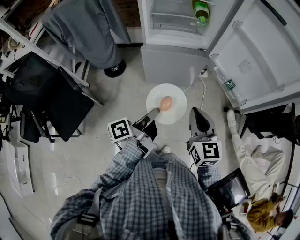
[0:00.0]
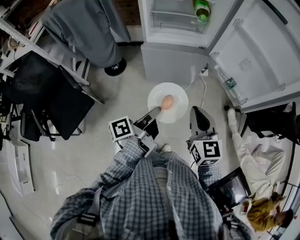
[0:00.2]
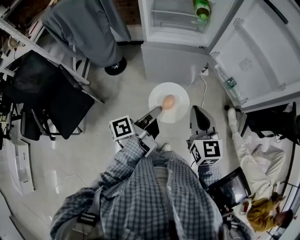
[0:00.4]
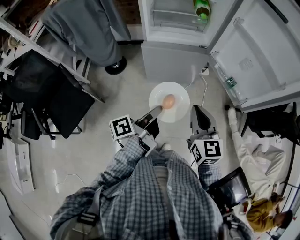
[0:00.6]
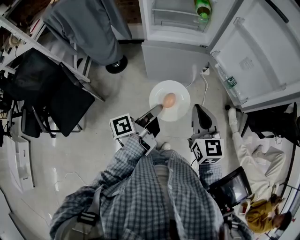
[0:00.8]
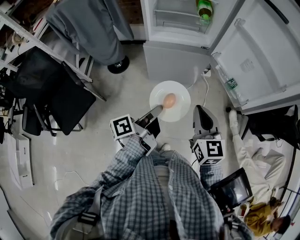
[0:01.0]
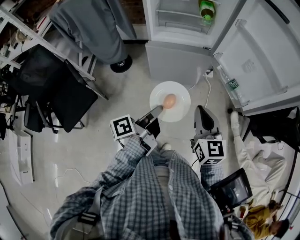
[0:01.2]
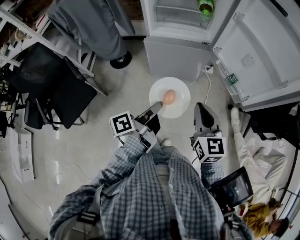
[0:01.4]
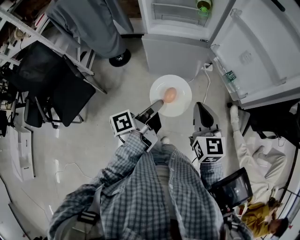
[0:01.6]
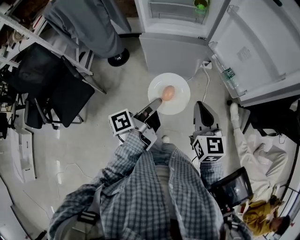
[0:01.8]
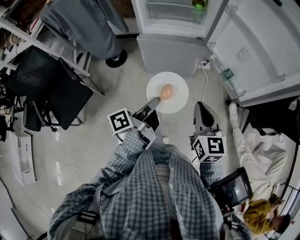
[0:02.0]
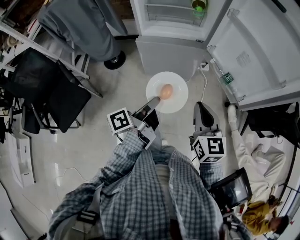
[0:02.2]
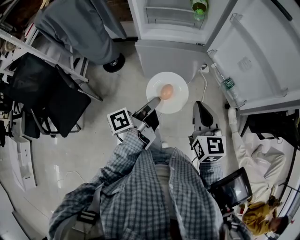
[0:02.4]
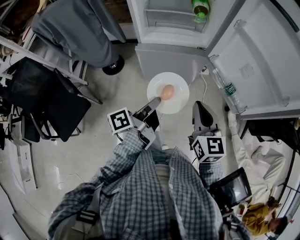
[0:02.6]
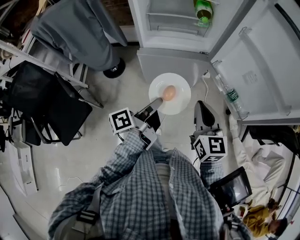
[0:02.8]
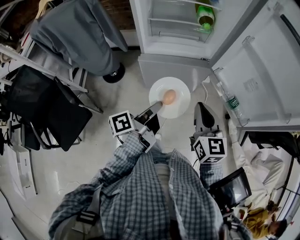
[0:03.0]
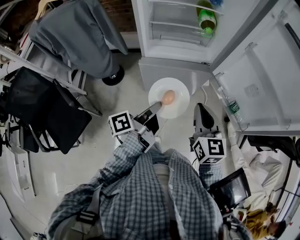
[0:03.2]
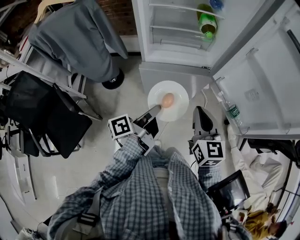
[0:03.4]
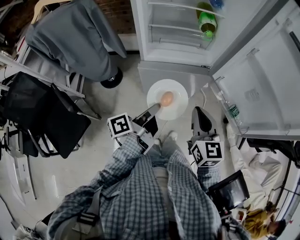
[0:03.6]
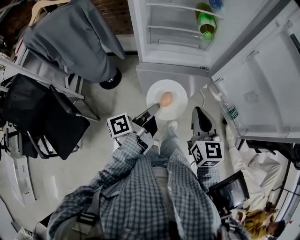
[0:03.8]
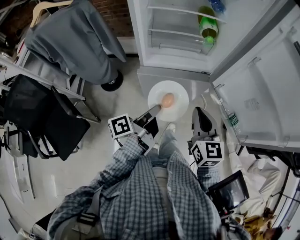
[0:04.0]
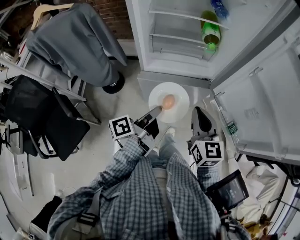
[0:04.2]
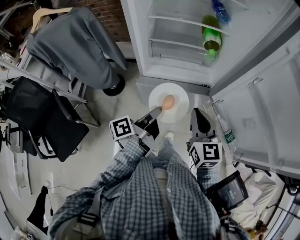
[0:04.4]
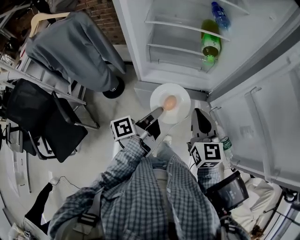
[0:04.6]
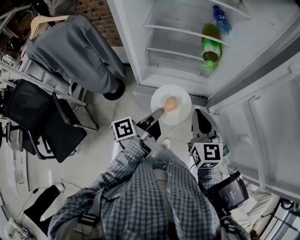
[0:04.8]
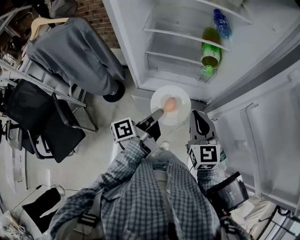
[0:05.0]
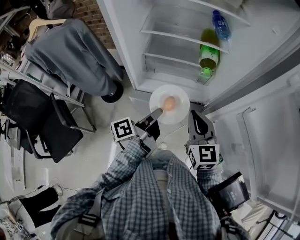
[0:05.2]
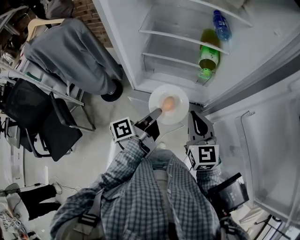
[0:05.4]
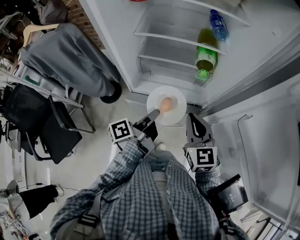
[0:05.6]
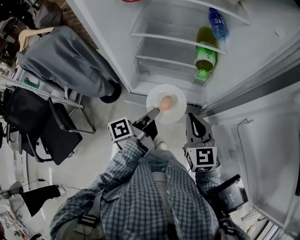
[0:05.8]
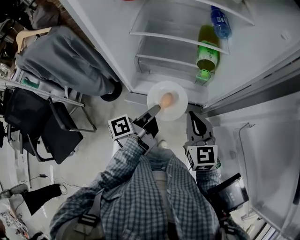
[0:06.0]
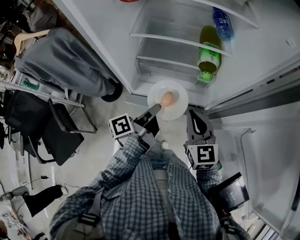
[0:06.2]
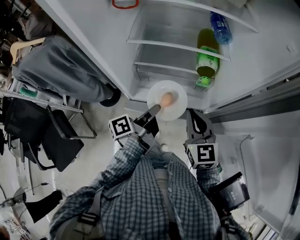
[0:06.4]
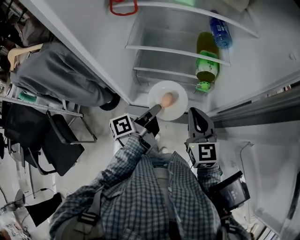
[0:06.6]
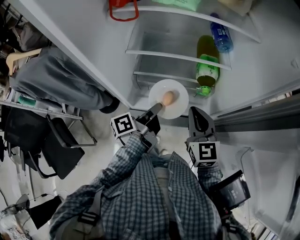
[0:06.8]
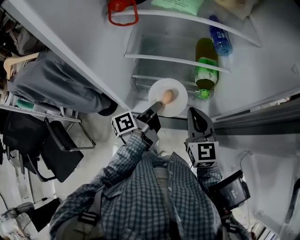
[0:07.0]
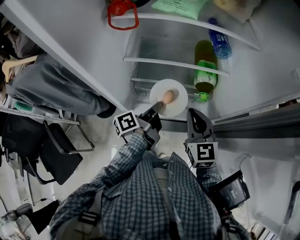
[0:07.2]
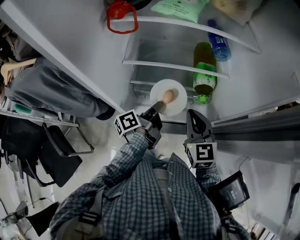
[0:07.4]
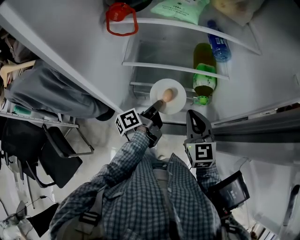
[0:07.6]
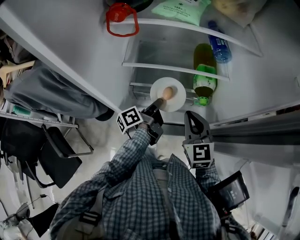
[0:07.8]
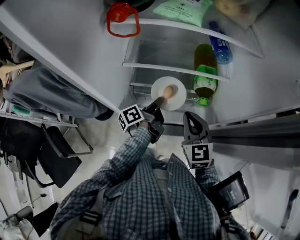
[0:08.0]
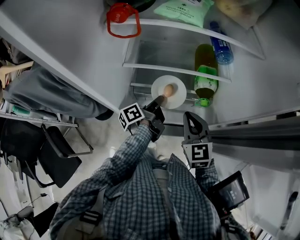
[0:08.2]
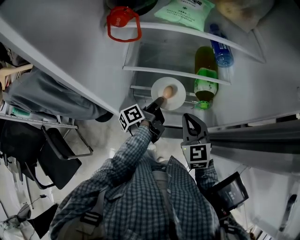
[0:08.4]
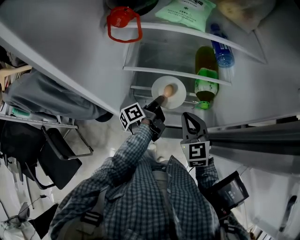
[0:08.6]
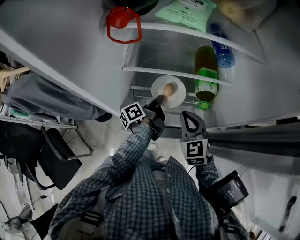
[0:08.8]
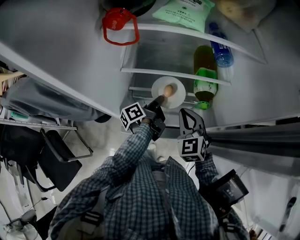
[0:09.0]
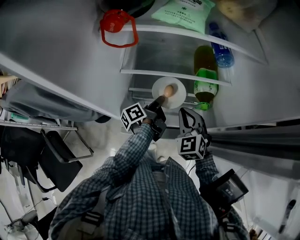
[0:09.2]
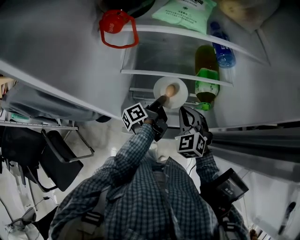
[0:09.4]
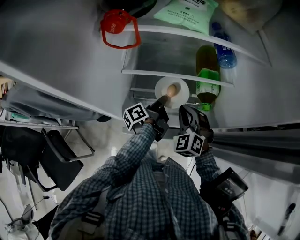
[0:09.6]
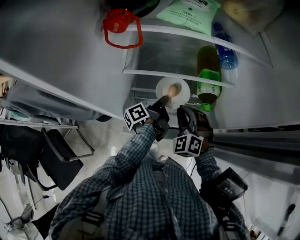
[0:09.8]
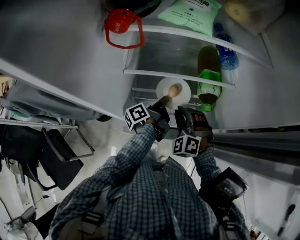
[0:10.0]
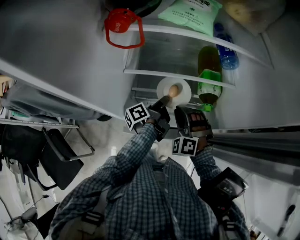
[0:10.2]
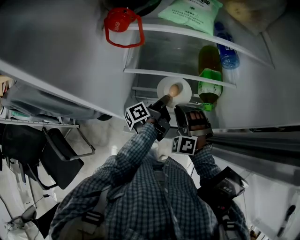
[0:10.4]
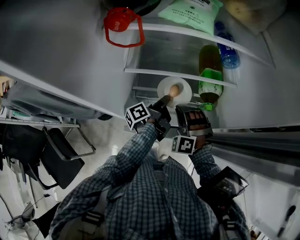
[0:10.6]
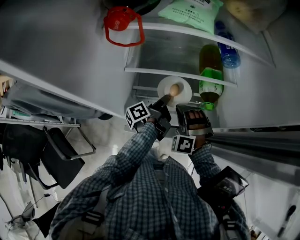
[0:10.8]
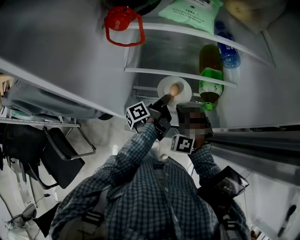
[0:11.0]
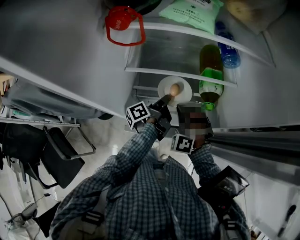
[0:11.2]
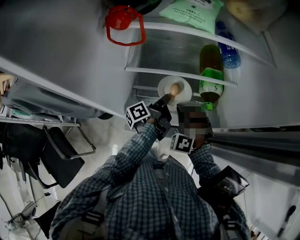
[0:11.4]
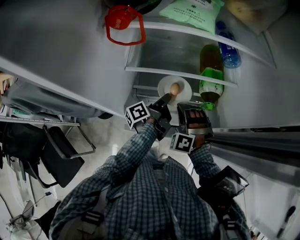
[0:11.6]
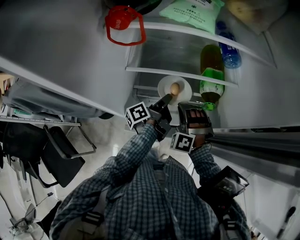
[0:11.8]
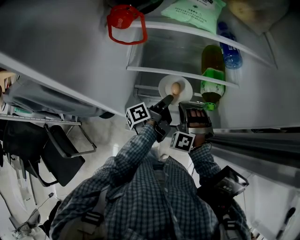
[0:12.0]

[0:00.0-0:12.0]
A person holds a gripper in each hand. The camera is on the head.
0:00.0 to 0:01.6: The right gripper ends up about 5 cm from where it was.
0:01.6 to 0:03.0: The right gripper ends up approximately 15 cm from where it was.
0:03.0 to 0:04.4: The right gripper shifts by about 15 cm.
0:04.4 to 0:06.0: The right gripper moves roughly 15 cm.
0:06.0 to 0:07.6: The right gripper changes place by roughly 15 cm.
0:07.6 to 0:09.0: The right gripper heads downward, covering some 5 cm, and changes its angle by approximately 20 degrees.
0:09.0 to 0:10.4: The right gripper heads downward, covering about 5 cm, and rolls counterclockwise, seen from behind, by some 50 degrees.

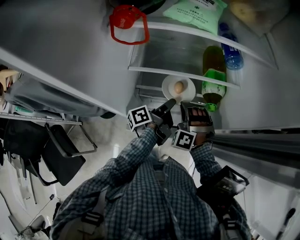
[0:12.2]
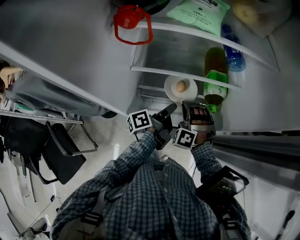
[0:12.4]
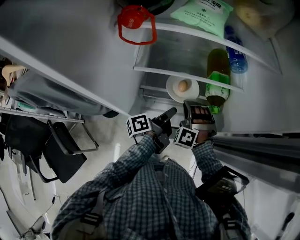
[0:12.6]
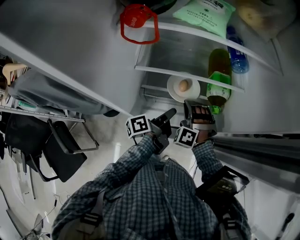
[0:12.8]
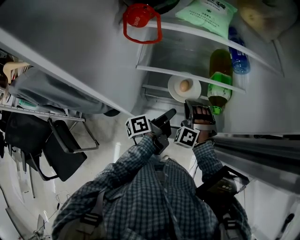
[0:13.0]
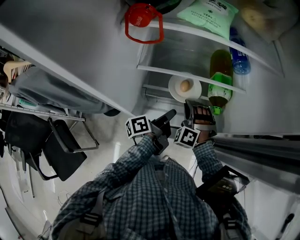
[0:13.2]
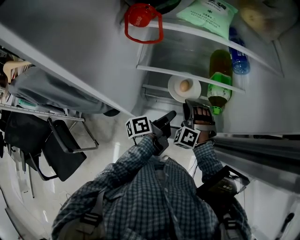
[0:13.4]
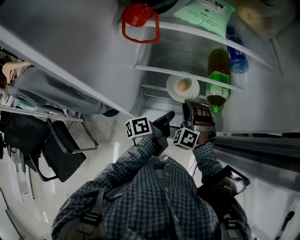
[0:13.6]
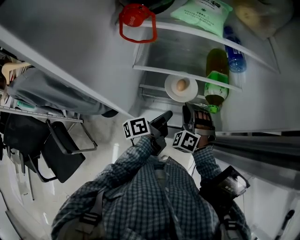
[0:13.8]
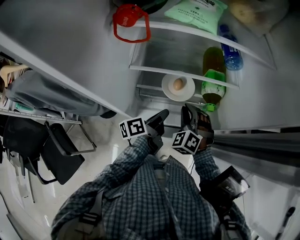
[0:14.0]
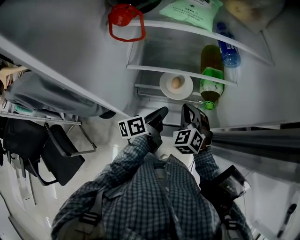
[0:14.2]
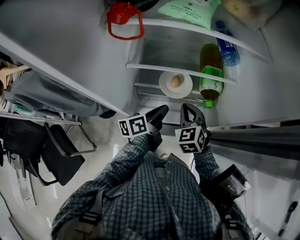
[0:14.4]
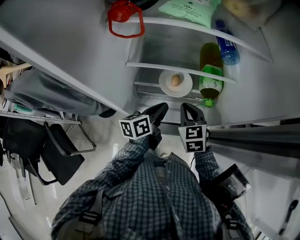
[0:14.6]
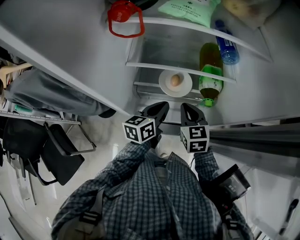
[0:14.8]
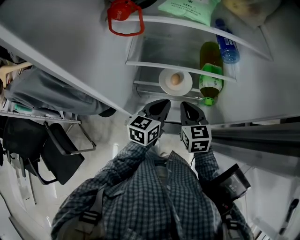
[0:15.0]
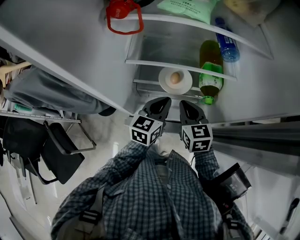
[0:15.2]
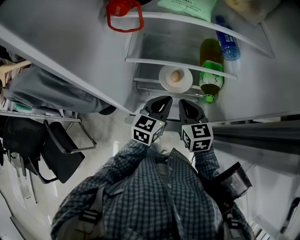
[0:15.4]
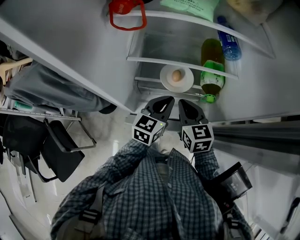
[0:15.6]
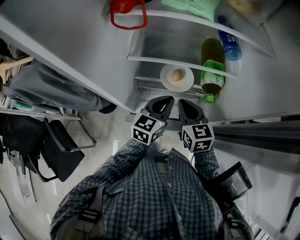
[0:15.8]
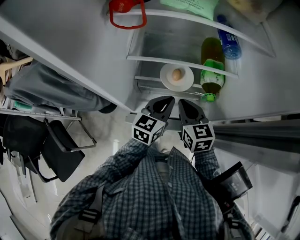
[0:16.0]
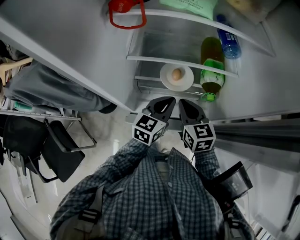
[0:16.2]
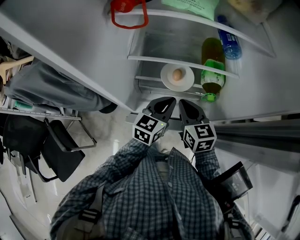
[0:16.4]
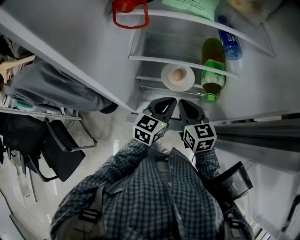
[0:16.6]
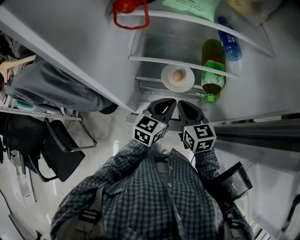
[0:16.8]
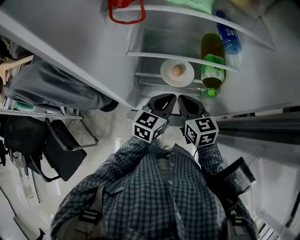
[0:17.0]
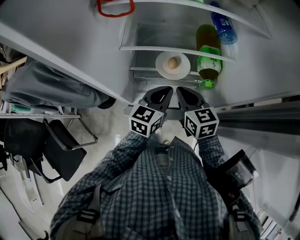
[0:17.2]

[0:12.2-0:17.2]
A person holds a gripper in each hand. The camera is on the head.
0:13.8 to 0:15.6: The right gripper is displaced upward by some 5 cm, and rotates around the line of its fingers by some 70 degrees, clockwise from behind.

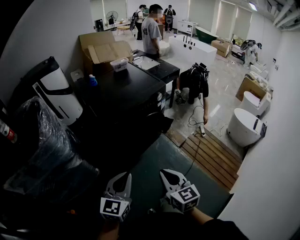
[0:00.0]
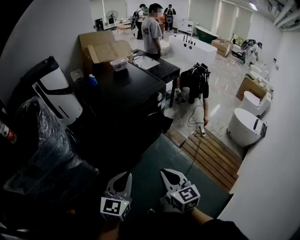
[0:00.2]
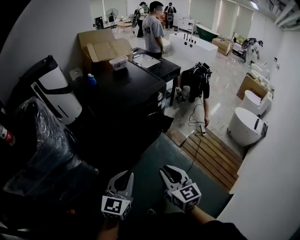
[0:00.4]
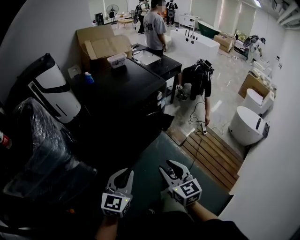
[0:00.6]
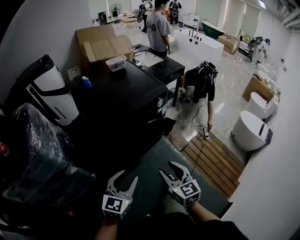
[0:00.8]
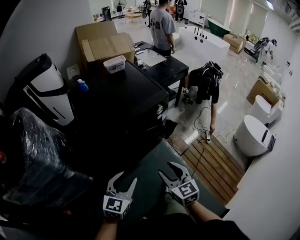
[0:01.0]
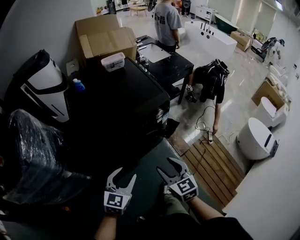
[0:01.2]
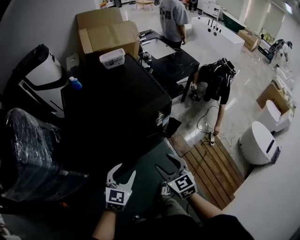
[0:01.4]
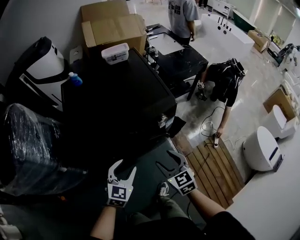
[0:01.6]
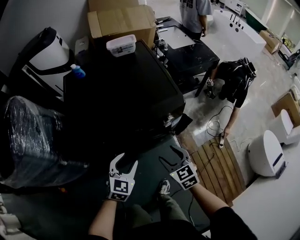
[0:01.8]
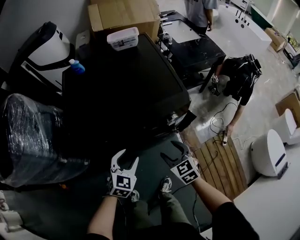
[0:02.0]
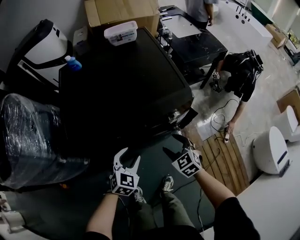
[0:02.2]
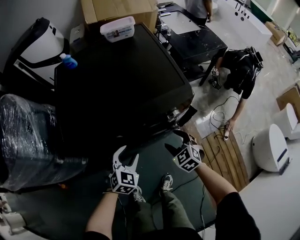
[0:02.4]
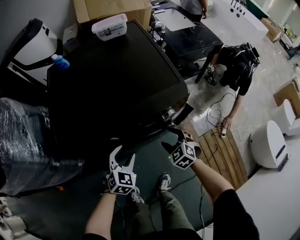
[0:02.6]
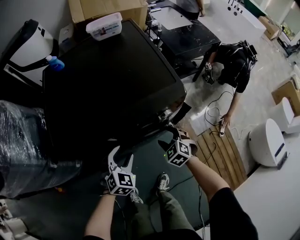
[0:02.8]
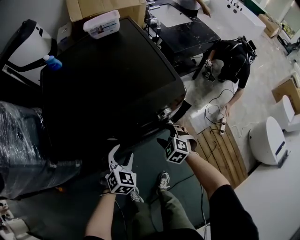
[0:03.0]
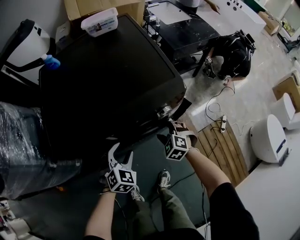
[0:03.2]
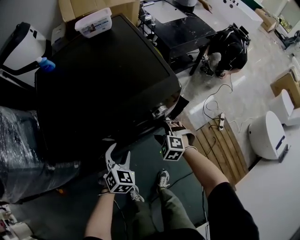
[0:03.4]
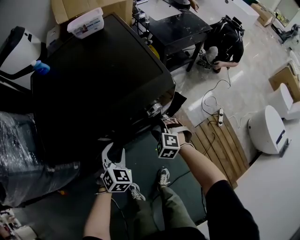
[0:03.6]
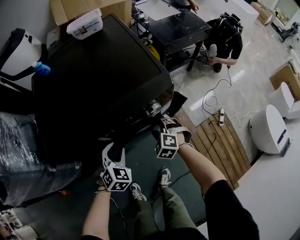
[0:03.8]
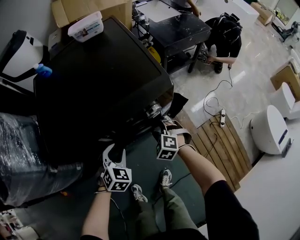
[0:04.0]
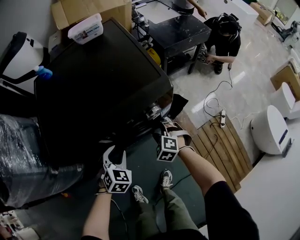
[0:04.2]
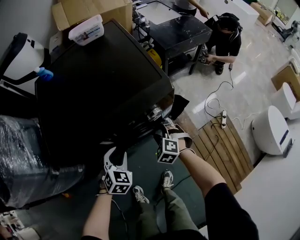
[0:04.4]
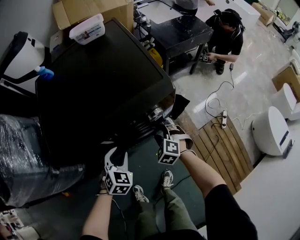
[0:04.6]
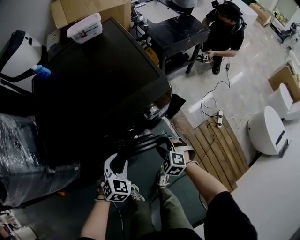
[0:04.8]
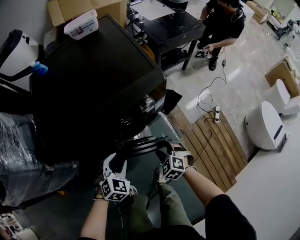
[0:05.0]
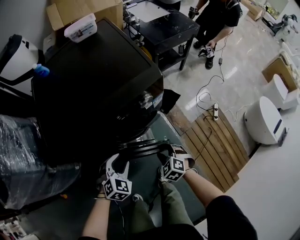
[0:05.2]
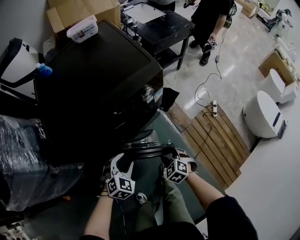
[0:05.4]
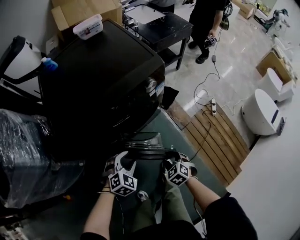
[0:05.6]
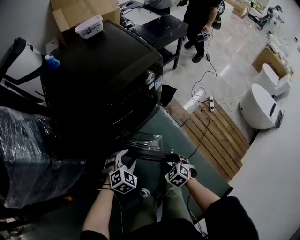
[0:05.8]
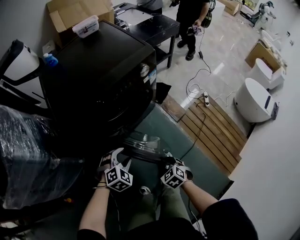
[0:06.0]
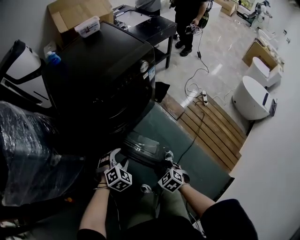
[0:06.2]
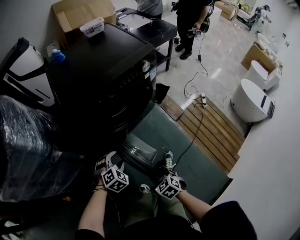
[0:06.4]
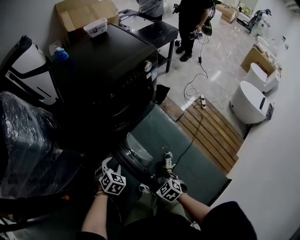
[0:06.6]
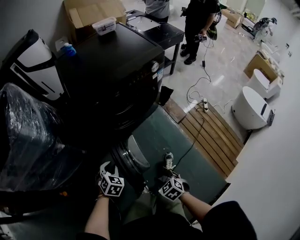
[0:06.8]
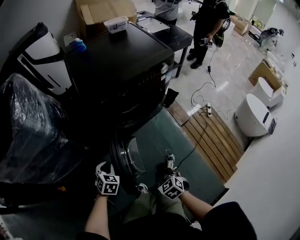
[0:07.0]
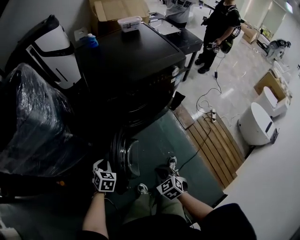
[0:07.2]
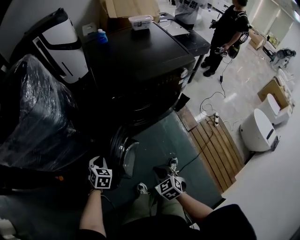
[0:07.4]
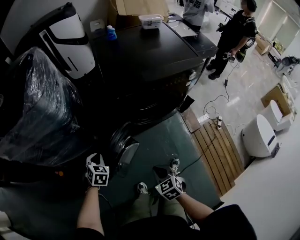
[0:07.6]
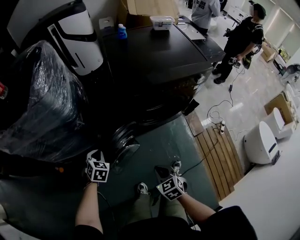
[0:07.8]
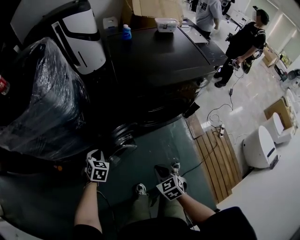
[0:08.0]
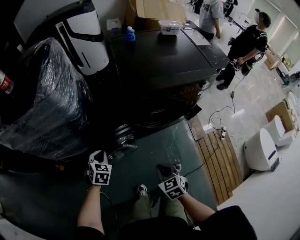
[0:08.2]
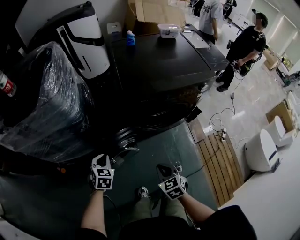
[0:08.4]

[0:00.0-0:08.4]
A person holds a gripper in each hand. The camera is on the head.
0:00.0 to 0:01.4: The two grippers go approximately 35 cm forward. The right gripper turns by about 20 degrees, and opens its fingers, while the left gripper swivels approximately 20 degrees, and opens up.
0:01.4 to 0:02.8: The two grippers go about 25 cm downward and forward. The left gripper turns by approximately 30 degrees. Meanwhile the right gripper swivels roughly 40 degrees.
0:02.8 to 0:04.2: The grippers make only small movements.
0:04.2 to 0:05.6: The left gripper heads backward, covering roughly 15 cm, and rotates approximately 30 degrees, while the right gripper goes some 25 cm backward, and turns by roughly 30 degrees.
0:05.6 to 0:07.0: The left gripper goes approximately 30 cm to the left and backward, rotates about 40 degrees, and closes up. Meanwhile the right gripper moves backward and to the left, roughly 25 cm.
0:07.0 to 0:08.4: The right gripper moves forward, upward and to the left, approximately 15 cm, while the left gripper heads to the left, forward and upward, covering some 15 cm, and turns by approximately 20 degrees.
